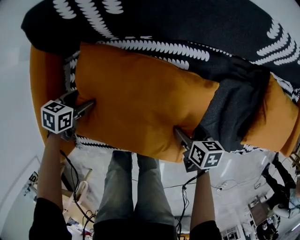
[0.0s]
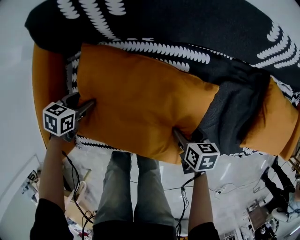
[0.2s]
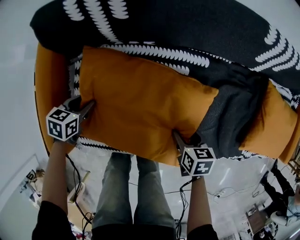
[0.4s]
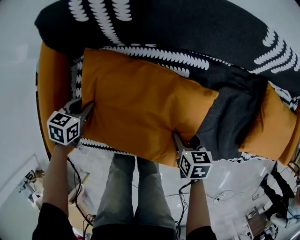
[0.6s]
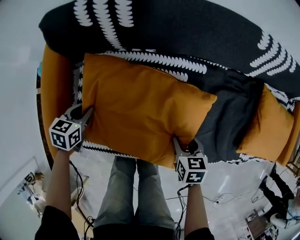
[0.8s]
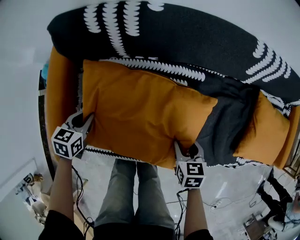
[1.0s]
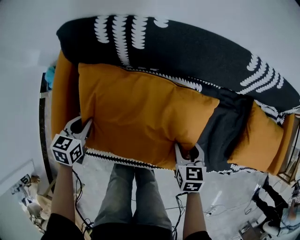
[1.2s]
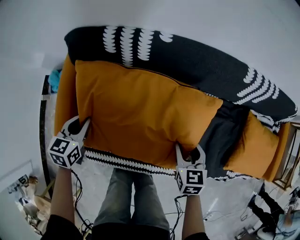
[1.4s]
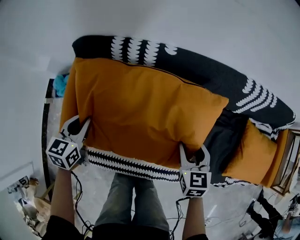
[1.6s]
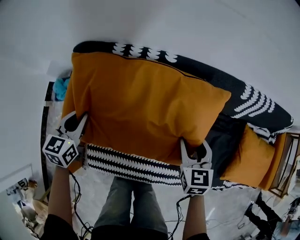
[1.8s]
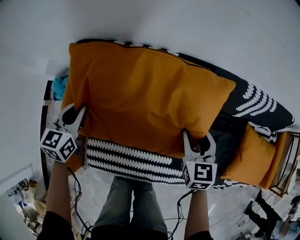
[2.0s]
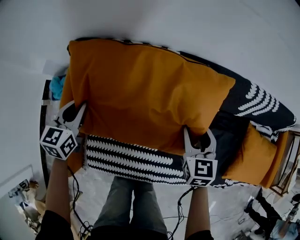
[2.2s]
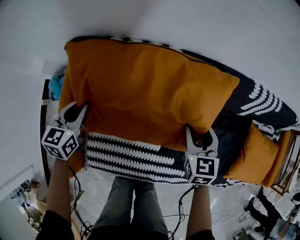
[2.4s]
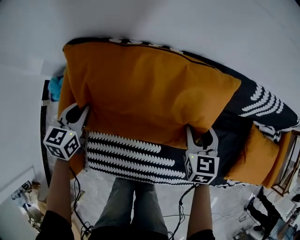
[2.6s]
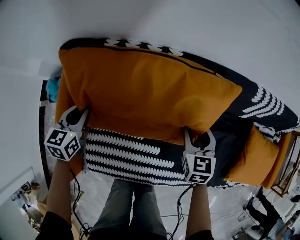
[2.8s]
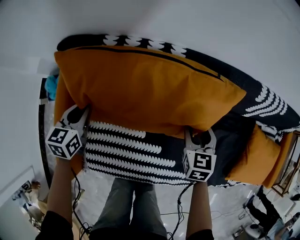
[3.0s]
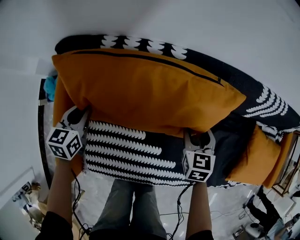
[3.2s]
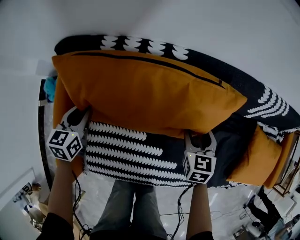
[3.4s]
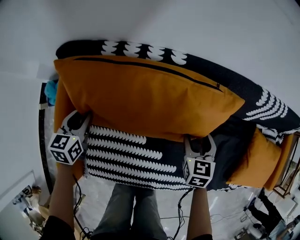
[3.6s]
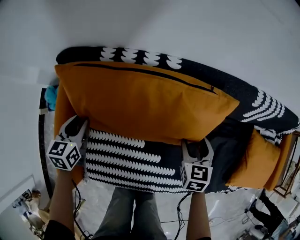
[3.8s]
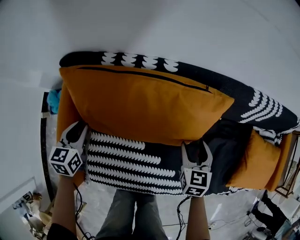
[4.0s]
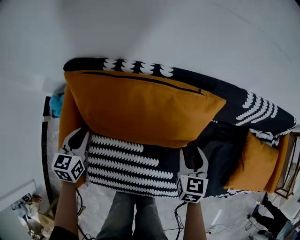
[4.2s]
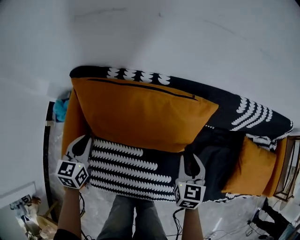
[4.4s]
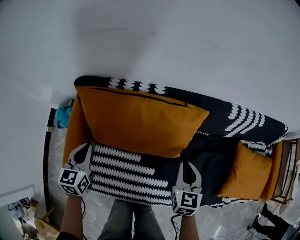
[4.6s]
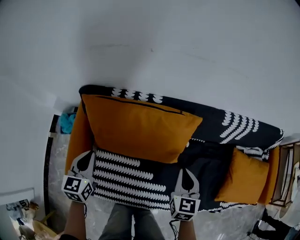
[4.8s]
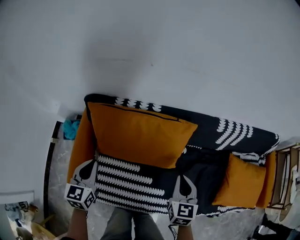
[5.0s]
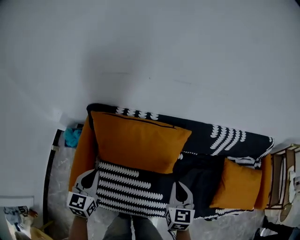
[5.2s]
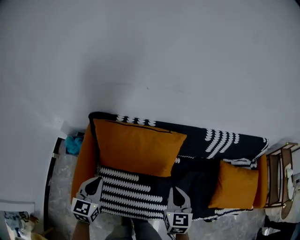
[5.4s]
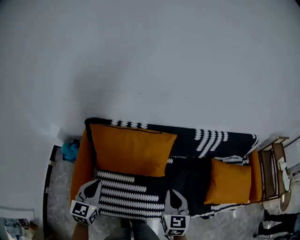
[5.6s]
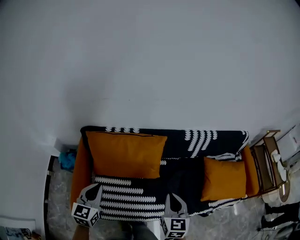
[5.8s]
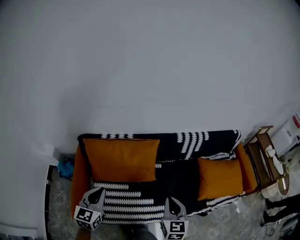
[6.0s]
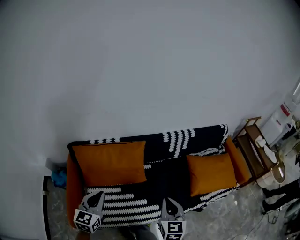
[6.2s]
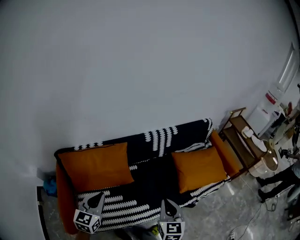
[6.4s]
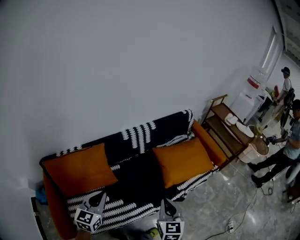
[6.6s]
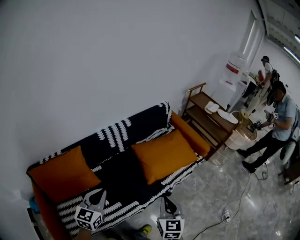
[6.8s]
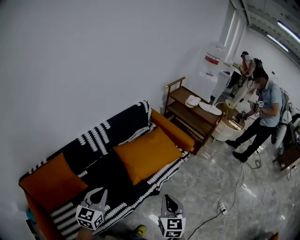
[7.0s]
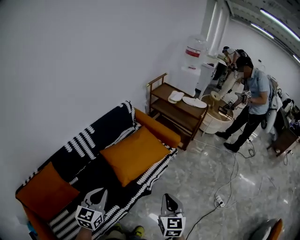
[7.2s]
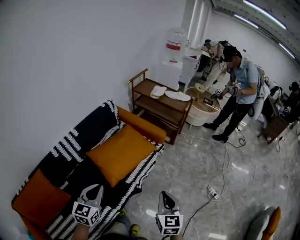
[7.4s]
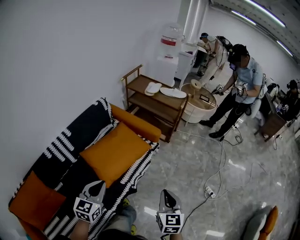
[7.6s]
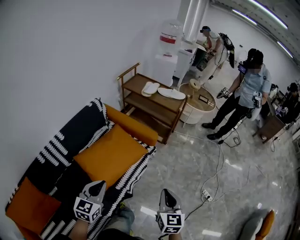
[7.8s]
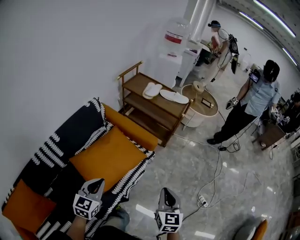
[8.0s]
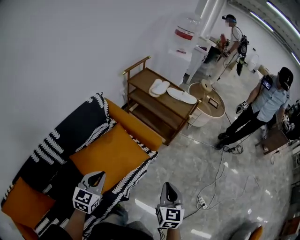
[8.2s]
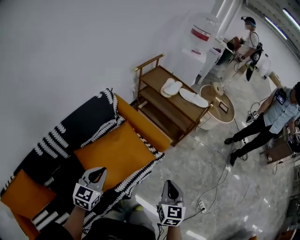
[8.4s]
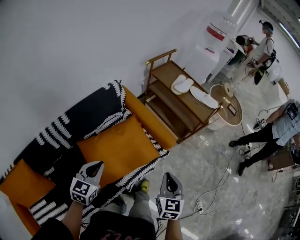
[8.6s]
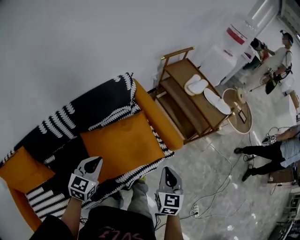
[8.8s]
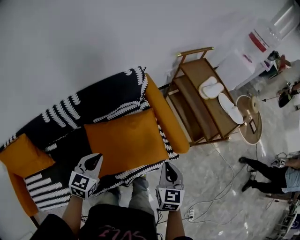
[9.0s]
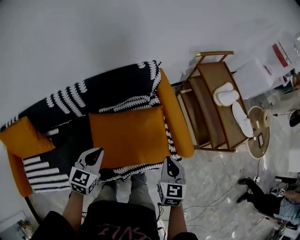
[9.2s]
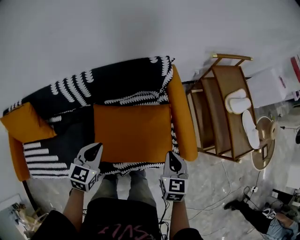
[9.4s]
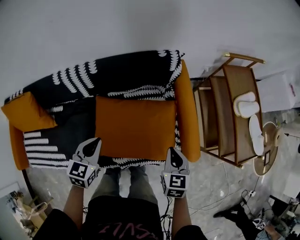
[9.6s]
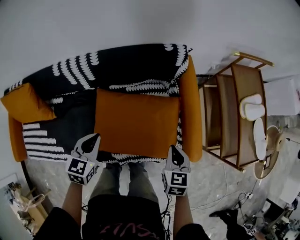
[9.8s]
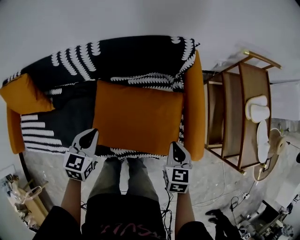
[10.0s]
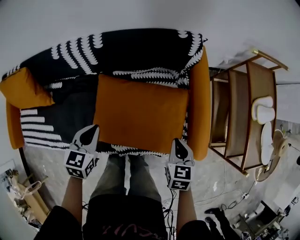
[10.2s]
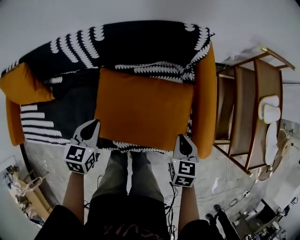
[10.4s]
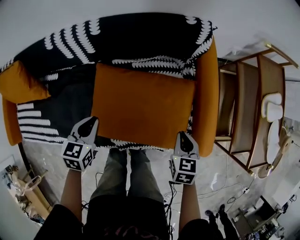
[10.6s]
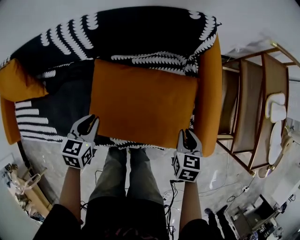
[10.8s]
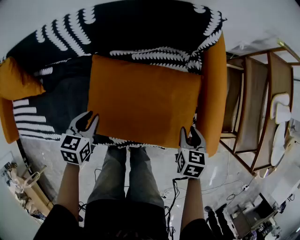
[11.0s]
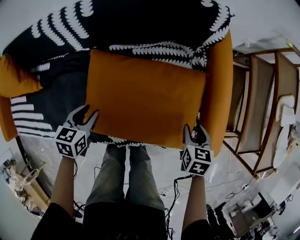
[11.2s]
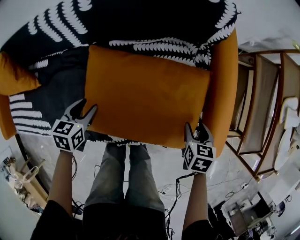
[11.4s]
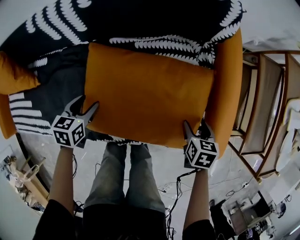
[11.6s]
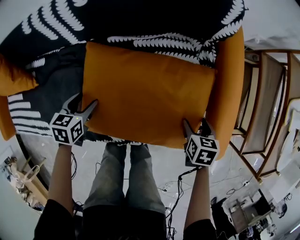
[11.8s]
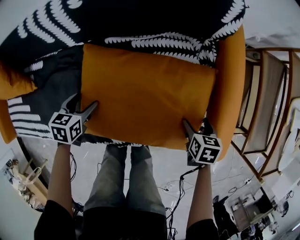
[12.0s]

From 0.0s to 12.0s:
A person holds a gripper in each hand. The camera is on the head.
From 0.0s to 1.6s: The right gripper is displaced upward and forward by some 25 cm, turns by about 40 degrees, and closes. Meanwhile the left gripper is displaced upward by some 20 cm, swivels about 40 degrees, and closes.
From 1.6s to 3.0s: The two grippers go roughly 15 cm forward and downward.
From 3.0s to 4.4s: The two grippers go approximately 10 cm upward and backward.
From 4.4s to 6.0s: The right gripper heads upward and backward, covering about 35 cm. Meanwhile the left gripper is displaced upward, backward and to the right by approximately 35 cm, and turns by roughly 30 degrees.
From 6.0s to 7.6s: The two grippers travel together, approximately 70 cm. The left gripper changes its angle by some 60 degrees. Meanwhile the right gripper rotates some 50 degrees.
From 7.6s to 9.0s: The right gripper ends up approximately 40 cm from where it was, and turns by about 30 degrees, while the left gripper ends up roughly 30 cm from where it was, and rotates approximately 30 degrees.
From 9.0s to 10.4s: Both grippers move downward, some 20 cm. The right gripper turns by about 30 degrees. Meanwhile the left gripper swivels approximately 40 degrees.
From 10.4s to 12.0s: Both grippers move downward, roughly 20 cm. The right gripper turns by about 20 degrees, and opens its fingers; the left gripper opens its fingers.

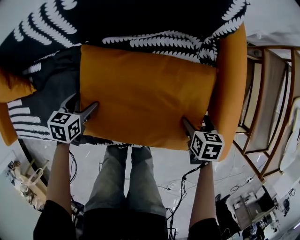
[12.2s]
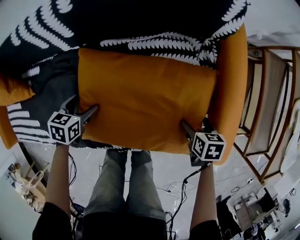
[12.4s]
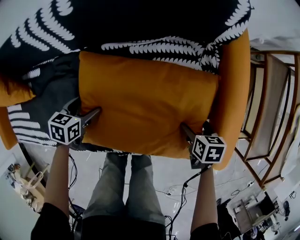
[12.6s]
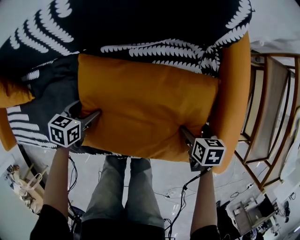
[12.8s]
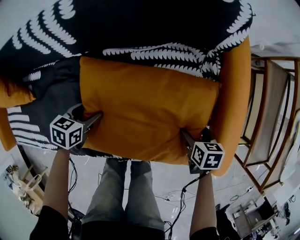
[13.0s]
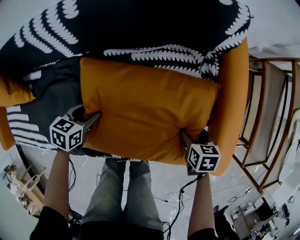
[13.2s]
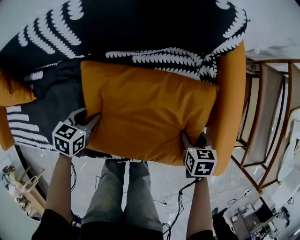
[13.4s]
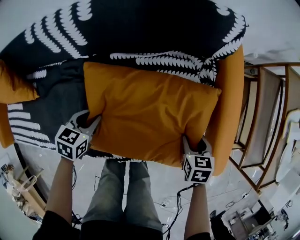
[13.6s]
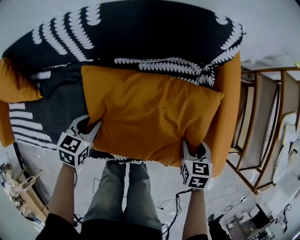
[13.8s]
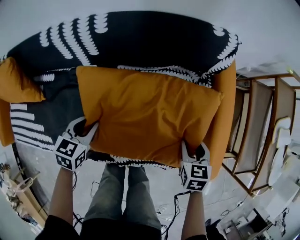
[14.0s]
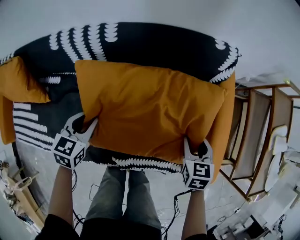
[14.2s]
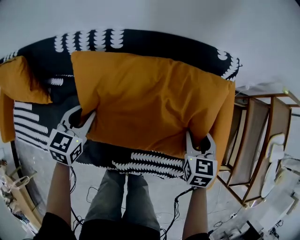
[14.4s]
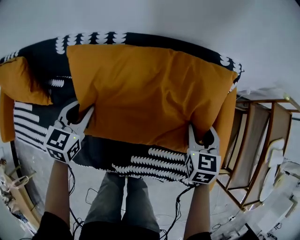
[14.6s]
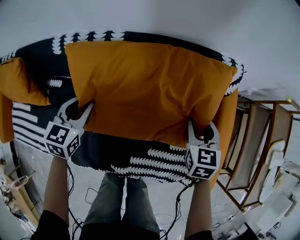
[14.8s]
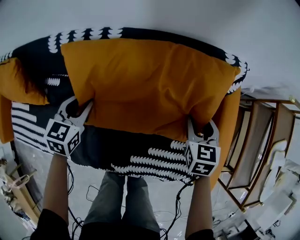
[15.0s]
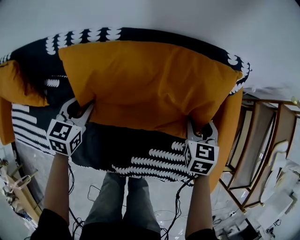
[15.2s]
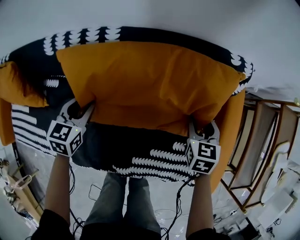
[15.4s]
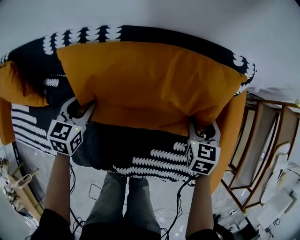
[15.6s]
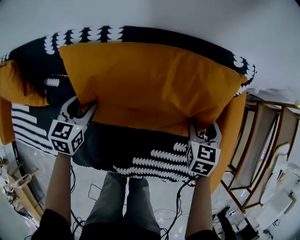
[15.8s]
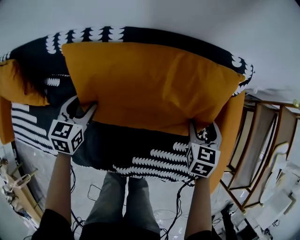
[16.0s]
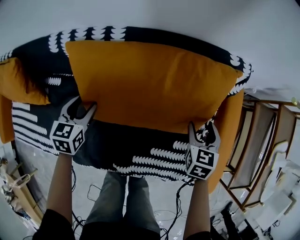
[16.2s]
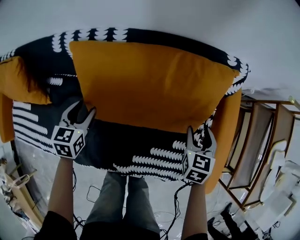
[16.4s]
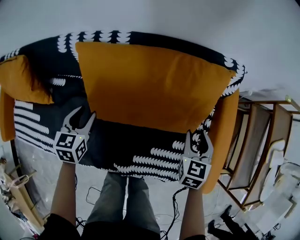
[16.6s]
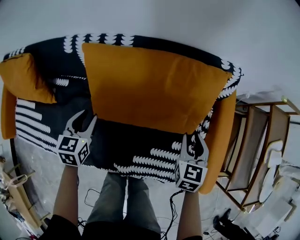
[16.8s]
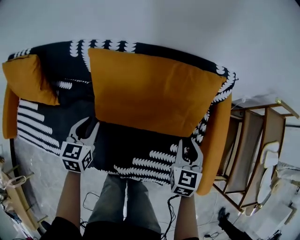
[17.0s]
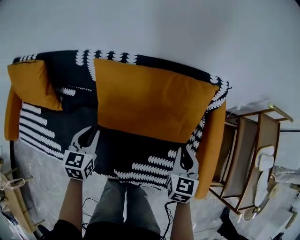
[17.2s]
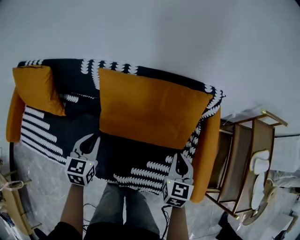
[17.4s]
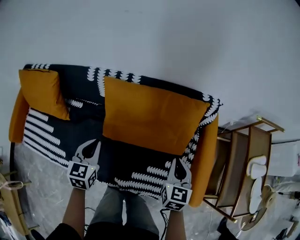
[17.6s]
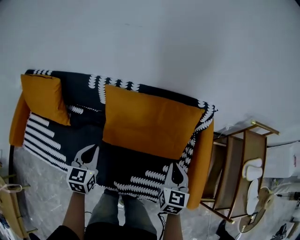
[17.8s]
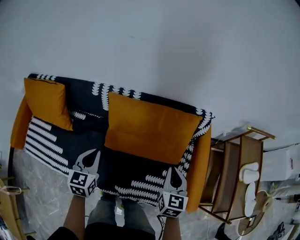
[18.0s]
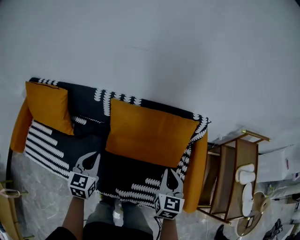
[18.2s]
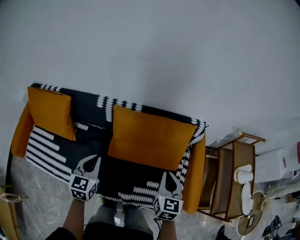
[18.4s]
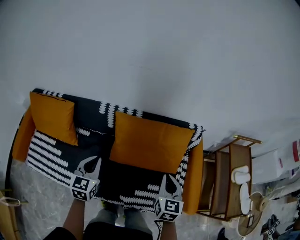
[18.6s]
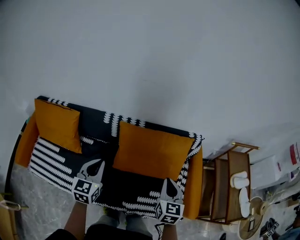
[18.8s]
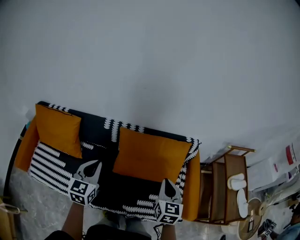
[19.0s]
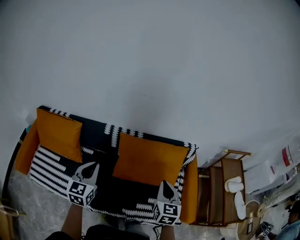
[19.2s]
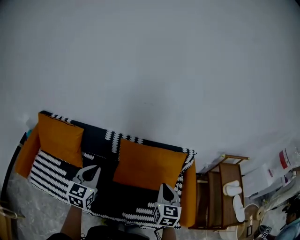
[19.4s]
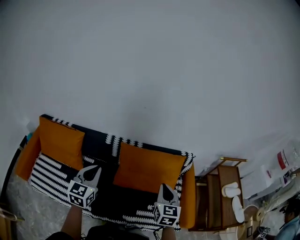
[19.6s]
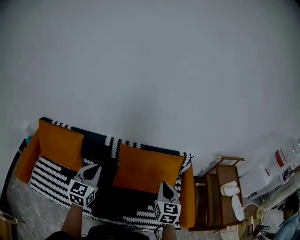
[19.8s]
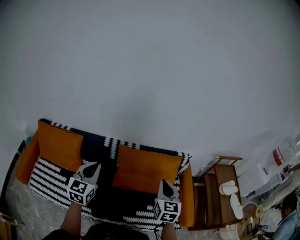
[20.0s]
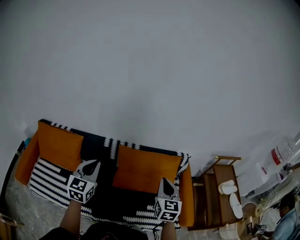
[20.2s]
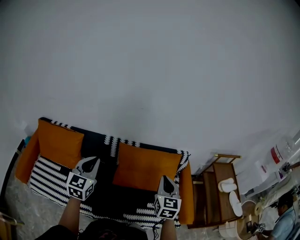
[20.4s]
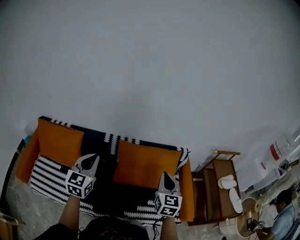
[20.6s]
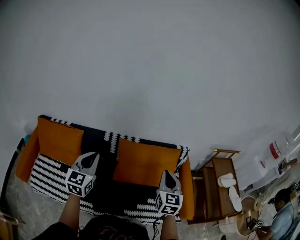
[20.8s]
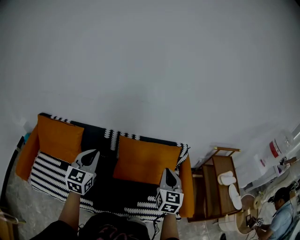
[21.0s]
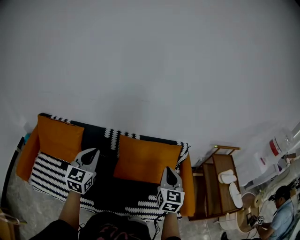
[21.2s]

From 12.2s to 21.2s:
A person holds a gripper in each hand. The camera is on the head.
From 12.2s to 13.8s: Both grippers move upward, some 5 cm. The right gripper closes its fingers. Meanwhile the left gripper closes.
From 13.8s to 15.2s: The right gripper is displaced forward and to the left by about 20 cm, while the left gripper travels forward, to the left and upward by about 20 cm.
From 15.2s to 16.6s: The two grippers go some 5 cm backward.
From 16.6s to 18.2s: The right gripper moves upward and to the left, approximately 25 cm, and closes; the left gripper goes some 25 cm upward and backward, and closes.
From 18.2s to 19.8s: The left gripper shifts about 20 cm upward. Meanwhile the right gripper is displaced upward and to the left by about 20 cm.
From 19.8s to 21.2s: The right gripper changes place by roughly 5 cm.

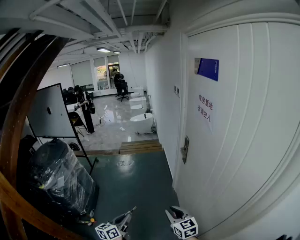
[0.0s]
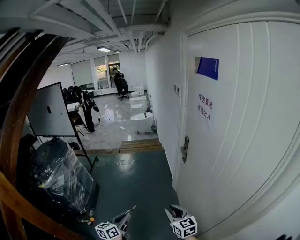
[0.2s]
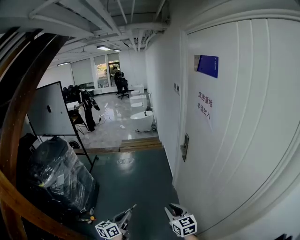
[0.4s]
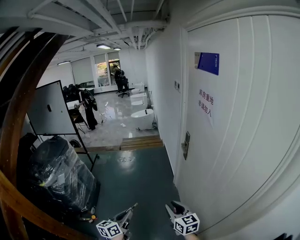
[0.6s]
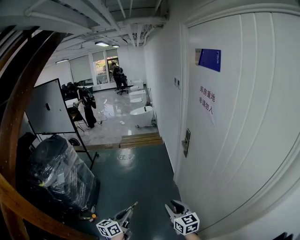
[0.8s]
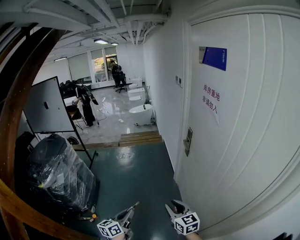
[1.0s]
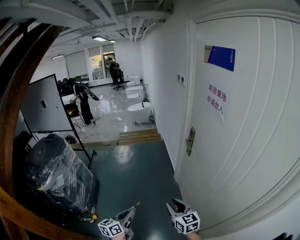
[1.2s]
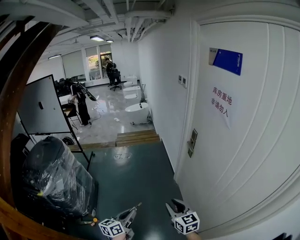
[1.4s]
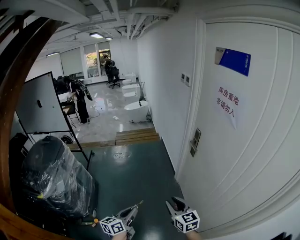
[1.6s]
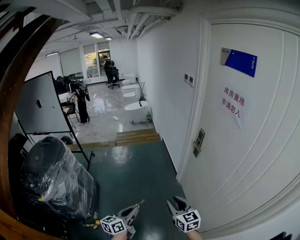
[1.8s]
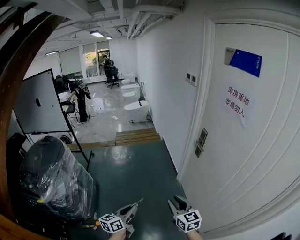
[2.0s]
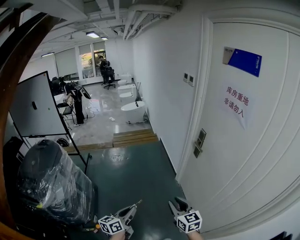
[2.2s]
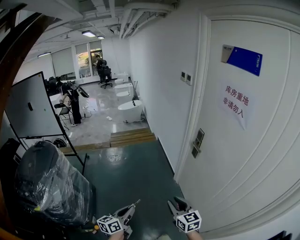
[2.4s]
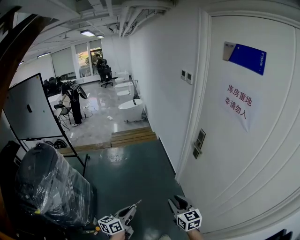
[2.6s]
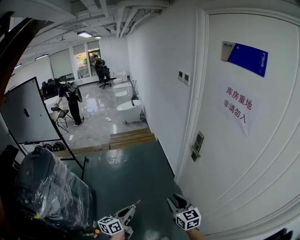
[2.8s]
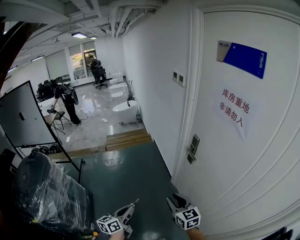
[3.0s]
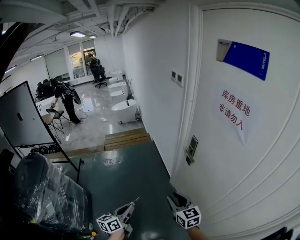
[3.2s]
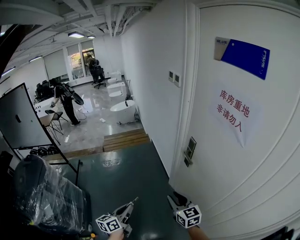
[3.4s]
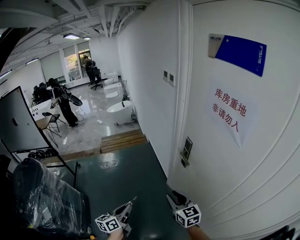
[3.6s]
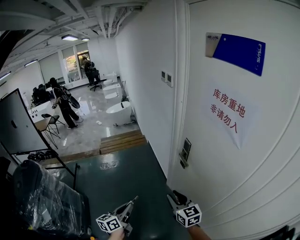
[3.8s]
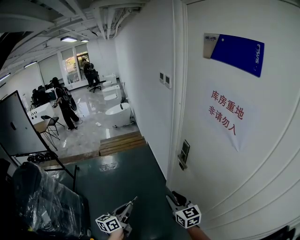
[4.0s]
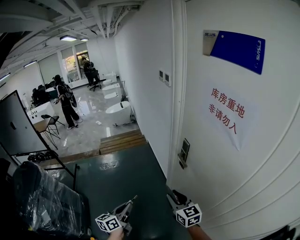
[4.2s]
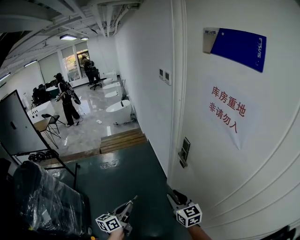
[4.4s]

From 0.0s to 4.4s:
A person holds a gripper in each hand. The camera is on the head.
From 0.0s to 1.4s: The two grippers go approximately 10 cm to the left and forward.
From 1.4s to 3.0s: Both grippers travel together forward, roughly 20 cm.
From 3.0s to 4.4s: Both grippers move forward and to the right, about 10 cm.
